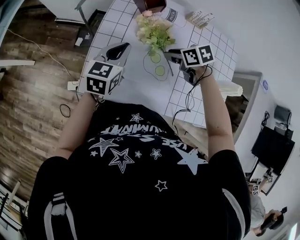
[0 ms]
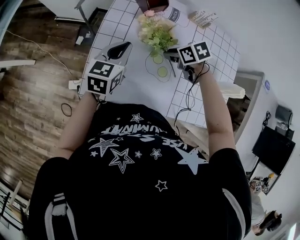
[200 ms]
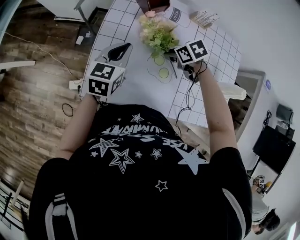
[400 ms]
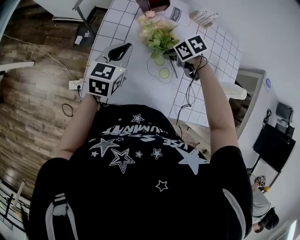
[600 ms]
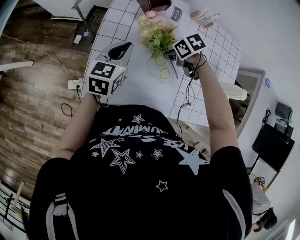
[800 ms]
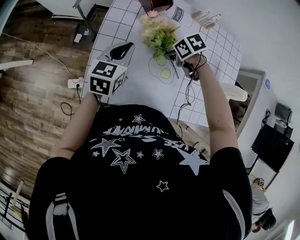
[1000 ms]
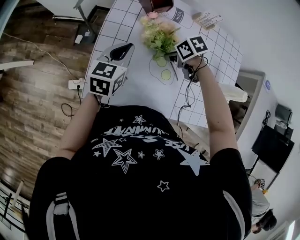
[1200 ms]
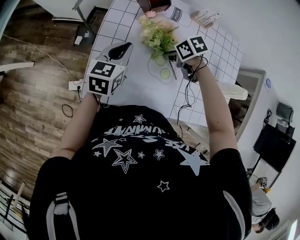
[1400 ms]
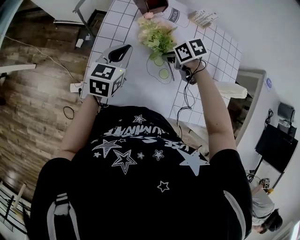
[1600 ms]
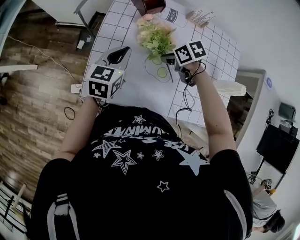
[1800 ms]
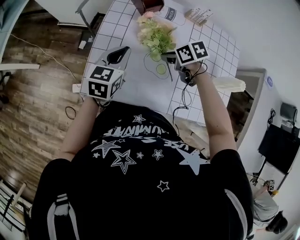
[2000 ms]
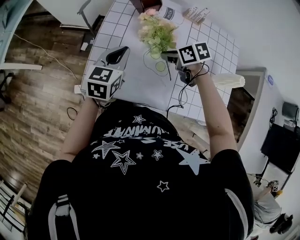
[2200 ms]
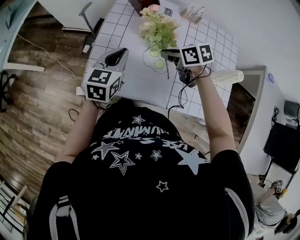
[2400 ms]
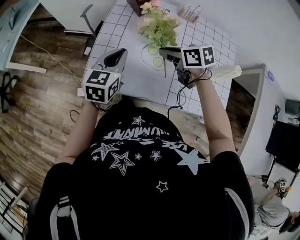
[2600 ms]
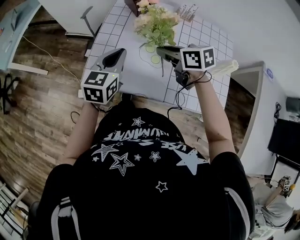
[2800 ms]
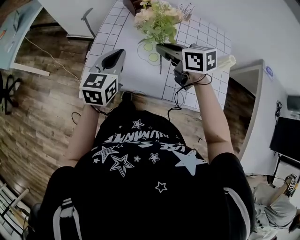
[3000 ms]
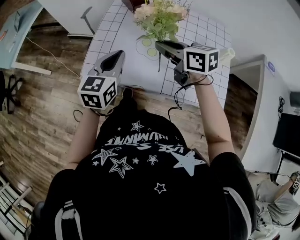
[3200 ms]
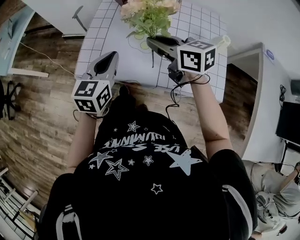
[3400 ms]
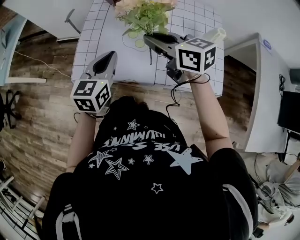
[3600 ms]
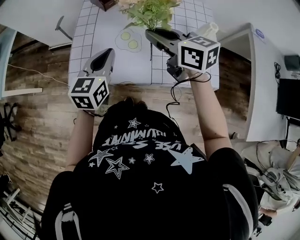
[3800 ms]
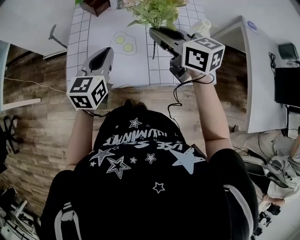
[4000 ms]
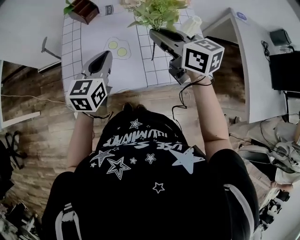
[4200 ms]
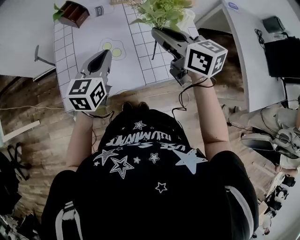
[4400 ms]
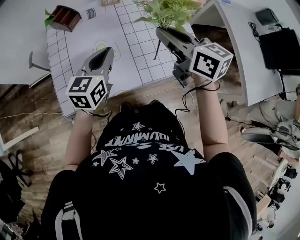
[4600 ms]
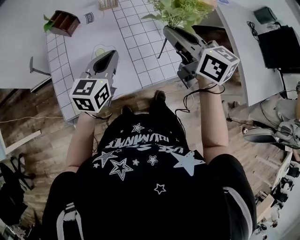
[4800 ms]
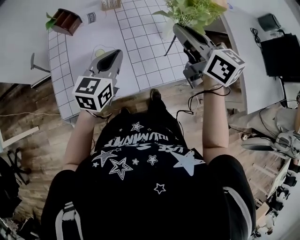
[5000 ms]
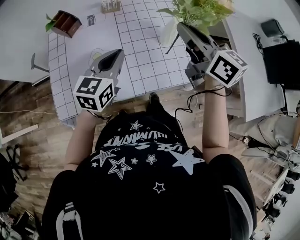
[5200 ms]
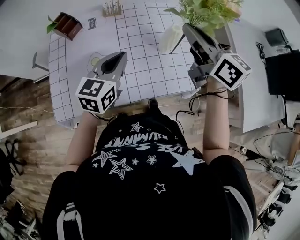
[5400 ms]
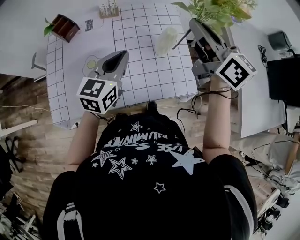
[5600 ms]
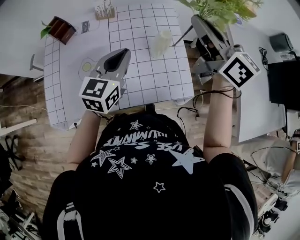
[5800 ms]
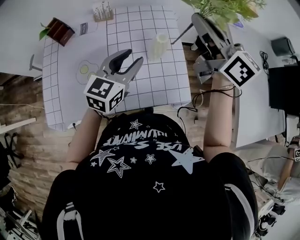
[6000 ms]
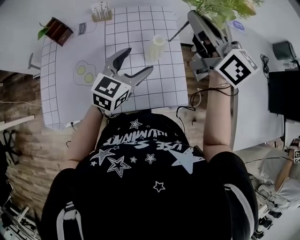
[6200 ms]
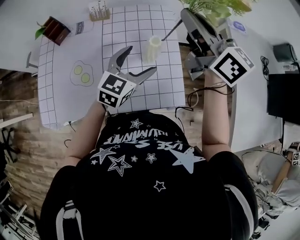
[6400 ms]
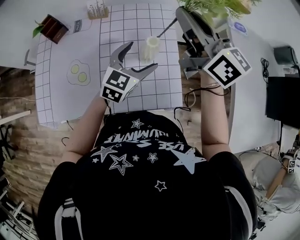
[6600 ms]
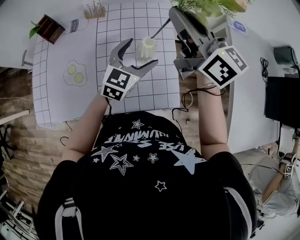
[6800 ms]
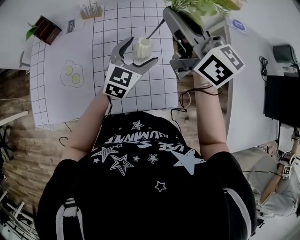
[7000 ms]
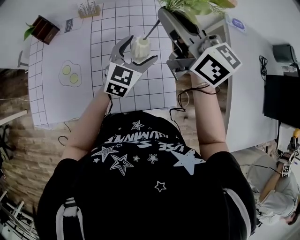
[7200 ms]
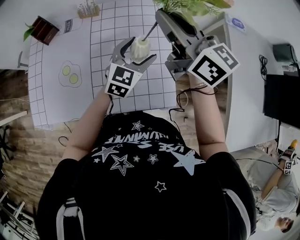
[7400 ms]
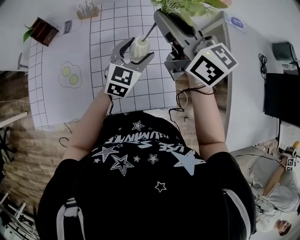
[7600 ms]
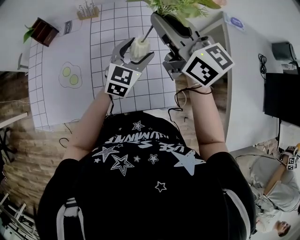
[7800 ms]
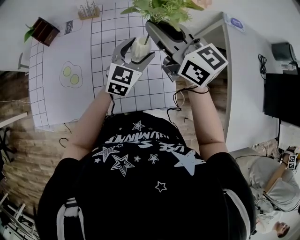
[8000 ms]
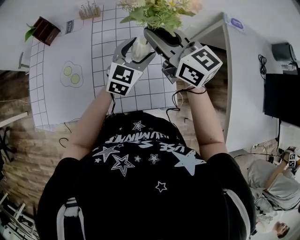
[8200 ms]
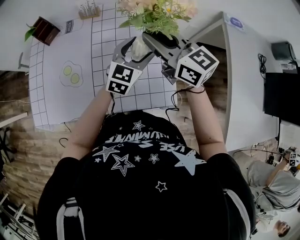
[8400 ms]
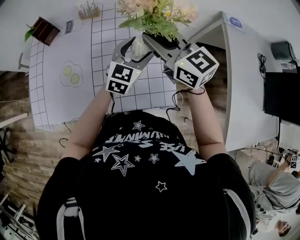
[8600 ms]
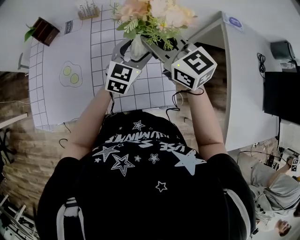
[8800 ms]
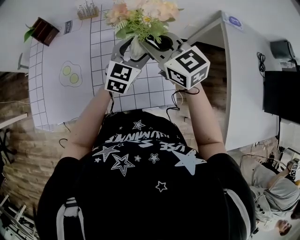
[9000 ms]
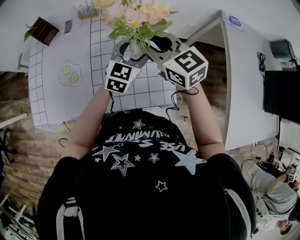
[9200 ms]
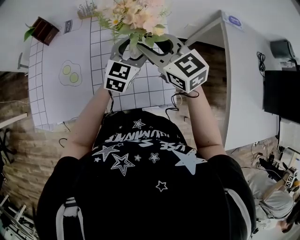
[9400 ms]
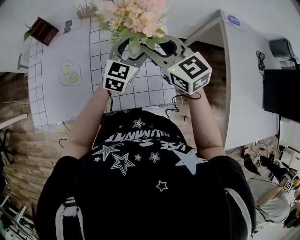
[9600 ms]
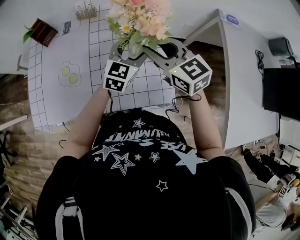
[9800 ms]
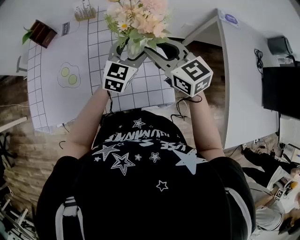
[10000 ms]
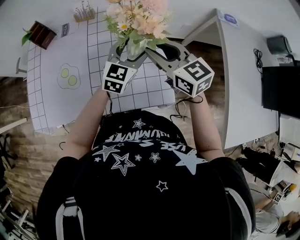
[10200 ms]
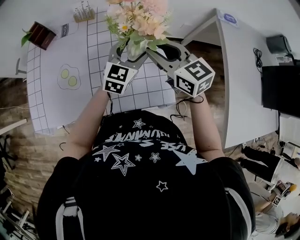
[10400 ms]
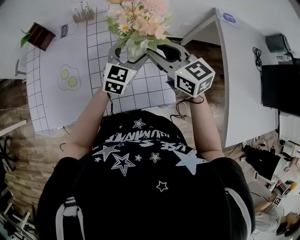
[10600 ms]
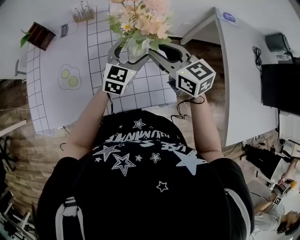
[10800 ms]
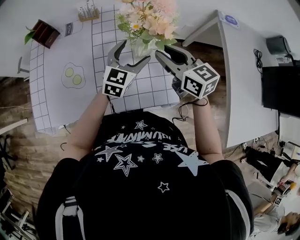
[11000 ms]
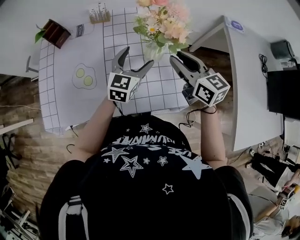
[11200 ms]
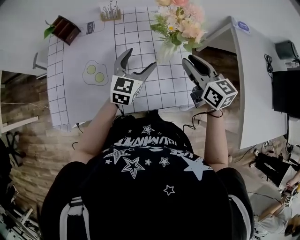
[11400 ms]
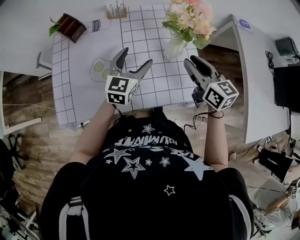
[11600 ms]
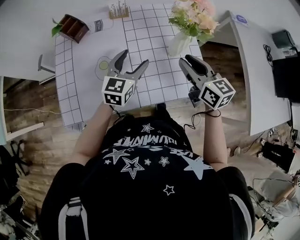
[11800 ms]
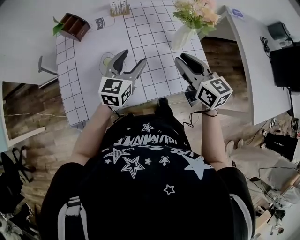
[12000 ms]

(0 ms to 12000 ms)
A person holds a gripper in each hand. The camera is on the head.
0 ms - 1600 ms: The grippers move only a little.
1600 ms - 3000 ms: The left gripper is displaced backward and upward by some 15 cm. The right gripper is displaced upward and backward by some 20 cm, and tilts its fingers some 40 degrees upward.
3000 ms - 4400 ms: The left gripper moves roughly 10 cm, and swivels about 20 degrees. The right gripper ends up approximately 15 cm from where it was, and turns by some 30 degrees.
4400 ms - 6000 ms: The left gripper shifts some 25 cm to the right, and opens up, while the right gripper goes some 25 cm to the right, forward and upward.
6000 ms - 7600 ms: The left gripper goes roughly 15 cm to the right, downward and forward, and opens its fingers; the right gripper moves roughly 5 cm.
7600 ms - 9000 ms: The right gripper shifts roughly 10 cm downward, and swivels about 30 degrees.
9000 ms - 10400 ms: The grippers move only a little.
10400 ms - 12000 ms: The left gripper moves to the left, approximately 25 cm. The right gripper heads to the left and backward, covering approximately 15 cm, and rotates roughly 20 degrees.

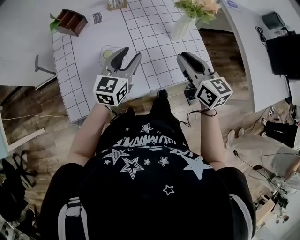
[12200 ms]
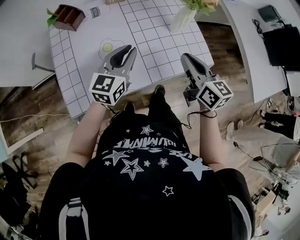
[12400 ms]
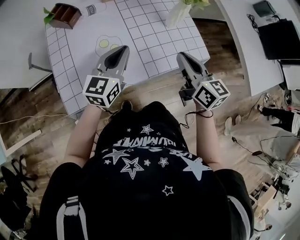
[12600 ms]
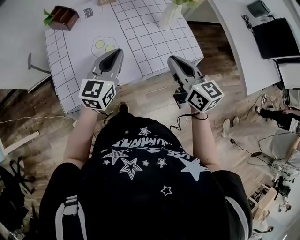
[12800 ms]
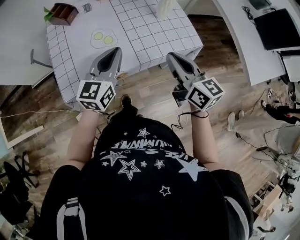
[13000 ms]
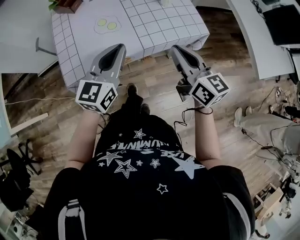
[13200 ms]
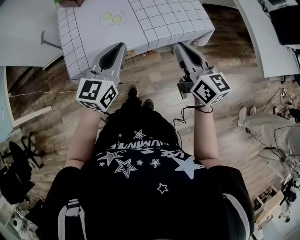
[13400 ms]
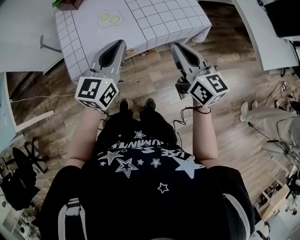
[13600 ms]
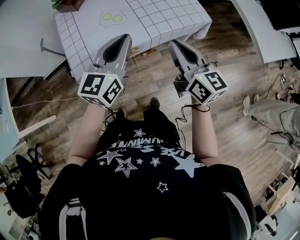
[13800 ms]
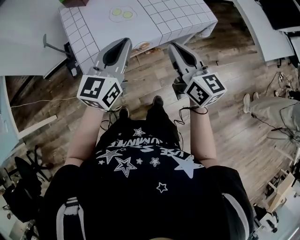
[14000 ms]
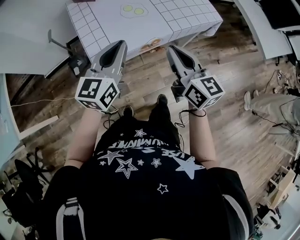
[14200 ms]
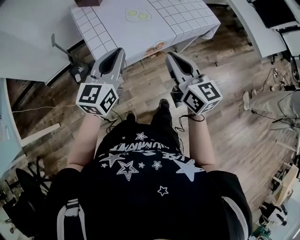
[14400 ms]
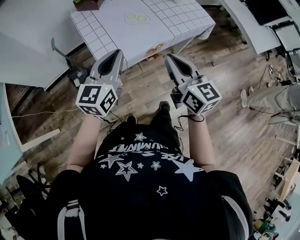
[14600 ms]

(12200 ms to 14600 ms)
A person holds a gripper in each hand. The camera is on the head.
12200 ms - 13400 ms: The grippers both shift backward by about 20 cm. The left gripper closes.
13400 ms - 14600 ms: The grippers both shift to the left and backward by about 25 cm.

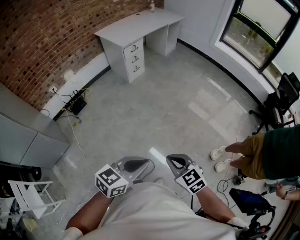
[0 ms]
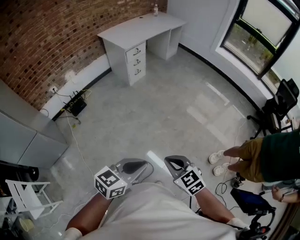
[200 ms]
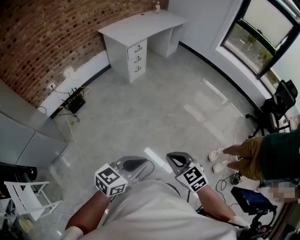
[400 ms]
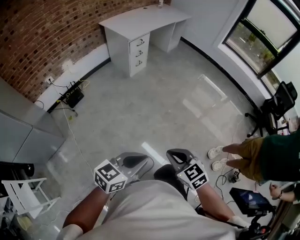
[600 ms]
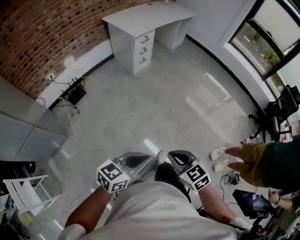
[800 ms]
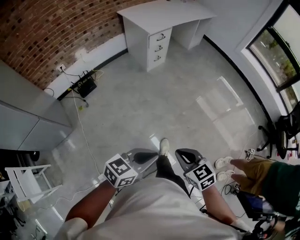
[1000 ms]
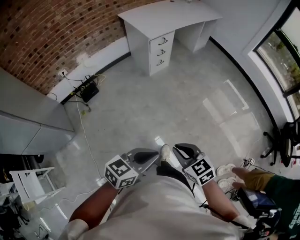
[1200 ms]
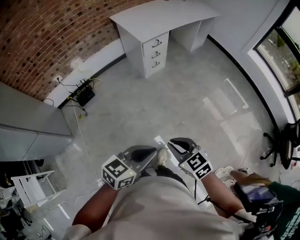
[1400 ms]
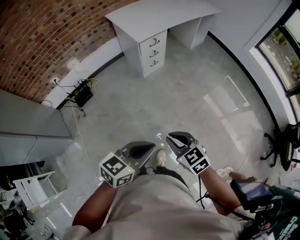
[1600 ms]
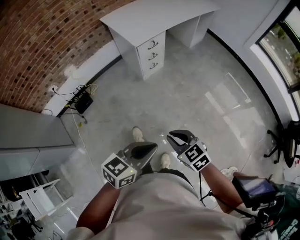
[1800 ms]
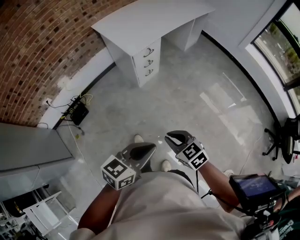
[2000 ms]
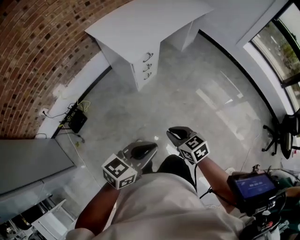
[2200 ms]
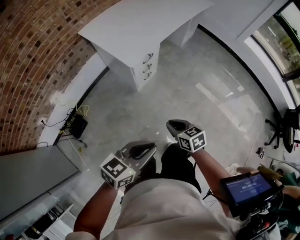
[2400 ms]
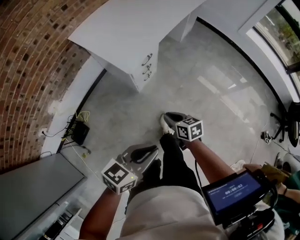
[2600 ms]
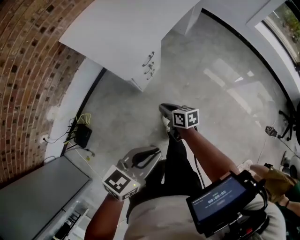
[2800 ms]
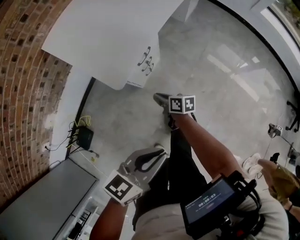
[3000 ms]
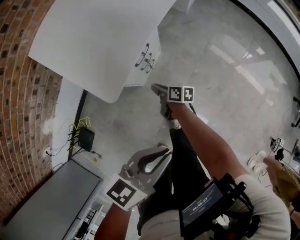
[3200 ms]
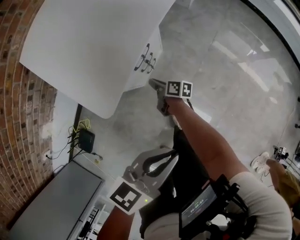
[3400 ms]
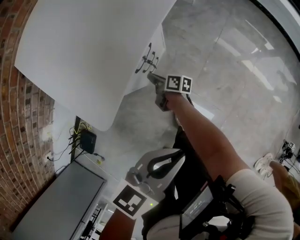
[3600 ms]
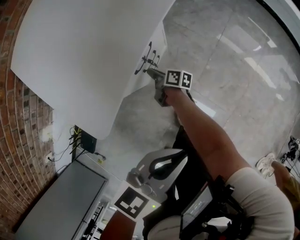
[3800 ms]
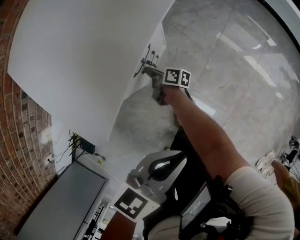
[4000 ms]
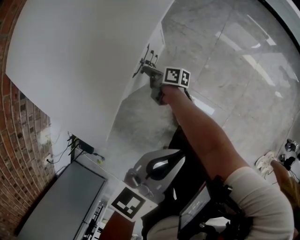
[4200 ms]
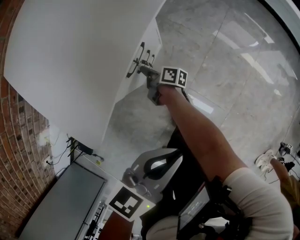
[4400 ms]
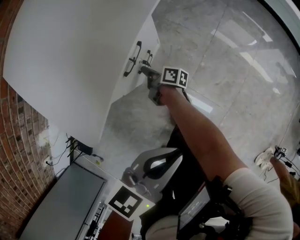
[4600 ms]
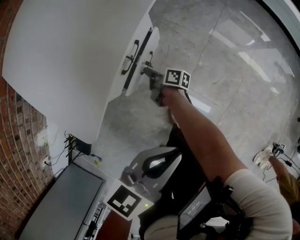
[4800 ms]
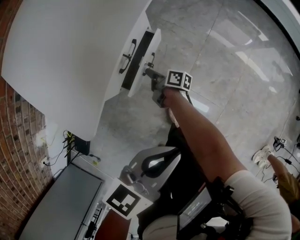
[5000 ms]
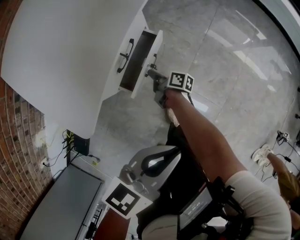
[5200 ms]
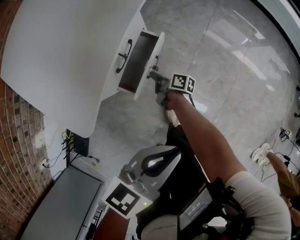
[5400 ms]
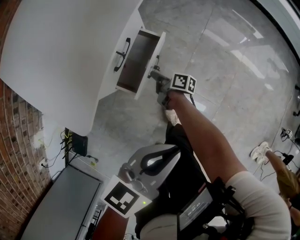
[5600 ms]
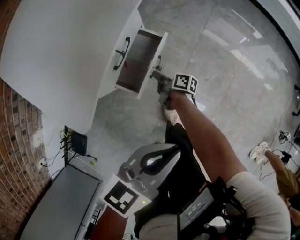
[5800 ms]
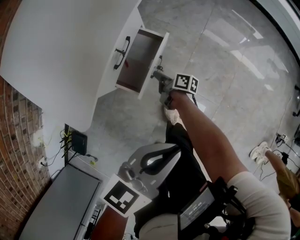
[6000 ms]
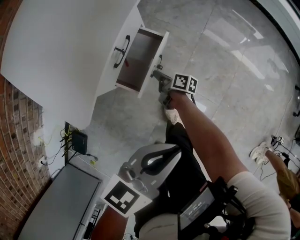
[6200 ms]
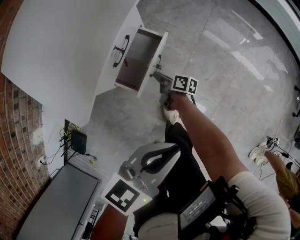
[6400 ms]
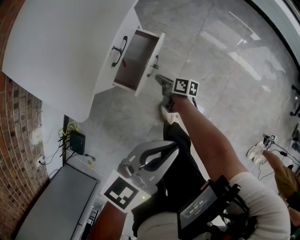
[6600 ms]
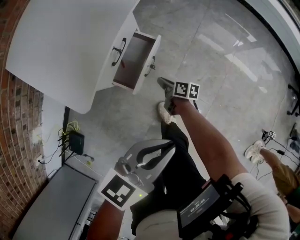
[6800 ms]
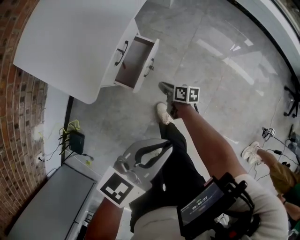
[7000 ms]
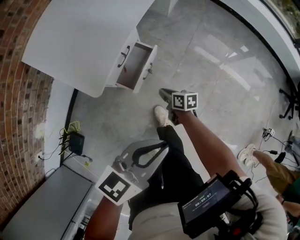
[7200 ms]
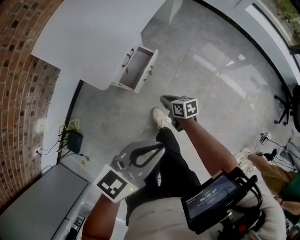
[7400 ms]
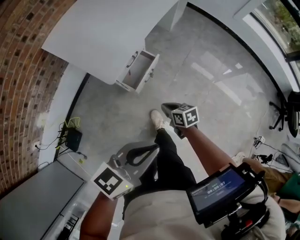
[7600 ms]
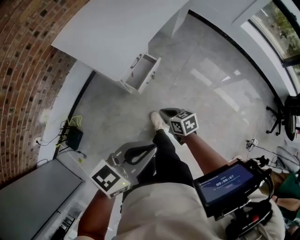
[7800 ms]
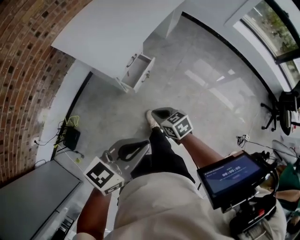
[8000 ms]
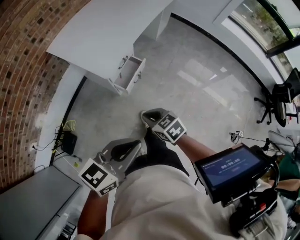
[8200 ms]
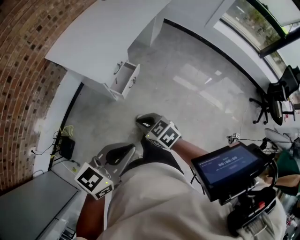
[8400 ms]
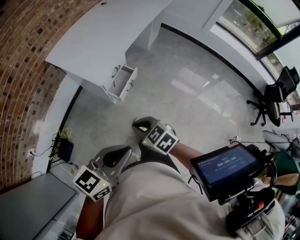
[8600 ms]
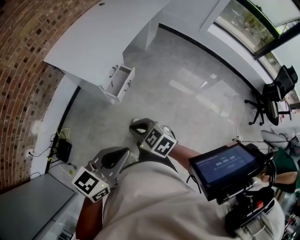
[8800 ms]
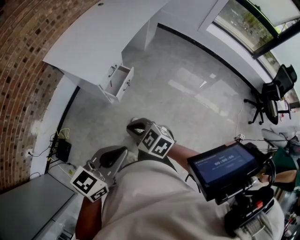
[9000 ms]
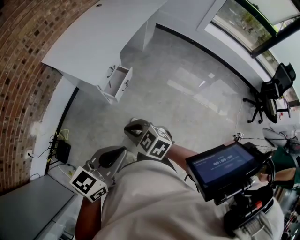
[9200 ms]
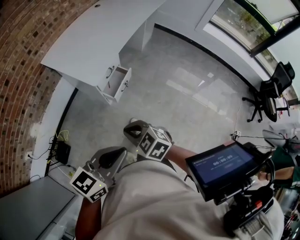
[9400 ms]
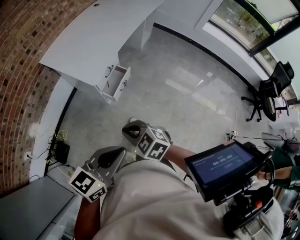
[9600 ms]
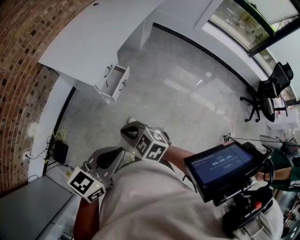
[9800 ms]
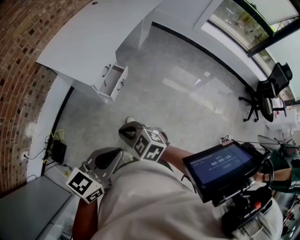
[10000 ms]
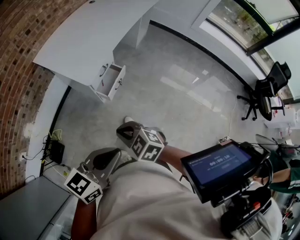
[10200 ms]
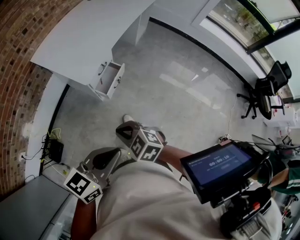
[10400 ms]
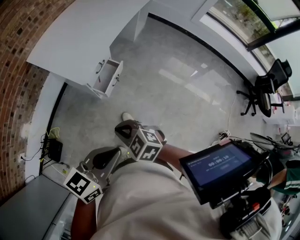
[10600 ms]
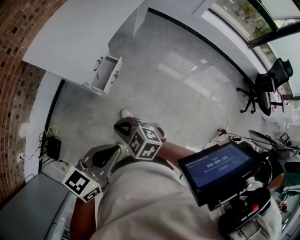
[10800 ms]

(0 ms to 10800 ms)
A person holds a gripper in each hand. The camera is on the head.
0 ms - 1600 ms: Both grippers are carried forward, about 40 cm.
1600 ms - 3000 ms: The two grippers travel together, forward, about 60 cm. The left gripper goes about 20 cm downward. Meanwhile the right gripper shifts about 40 cm downward, and rolls clockwise, seen from behind, by approximately 70 degrees.
3000 ms - 4600 ms: Both grippers travel together downward and forward, roughly 25 cm. The right gripper rotates roughly 30 degrees.
4600 ms - 6200 ms: The right gripper goes approximately 10 cm to the right.
6200 ms - 7800 ms: Both grippers move upward and backward, roughly 35 cm. The right gripper rolls counterclockwise, seen from behind, by some 50 degrees.
7800 ms - 9200 ms: The left gripper shifts some 10 cm backward and upward. Meanwhile the right gripper shifts roughly 25 cm upward and backward, and turns by roughly 40 degrees.
9200 ms - 10800 ms: The right gripper shifts roughly 10 cm forward and downward. Meanwhile the left gripper goes roughly 10 cm forward.
